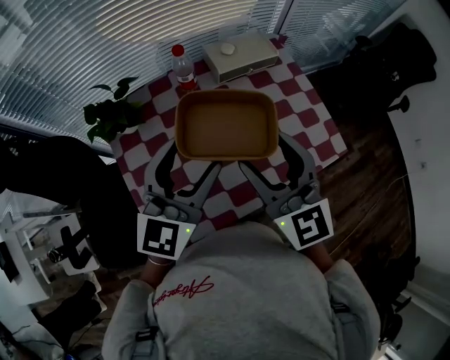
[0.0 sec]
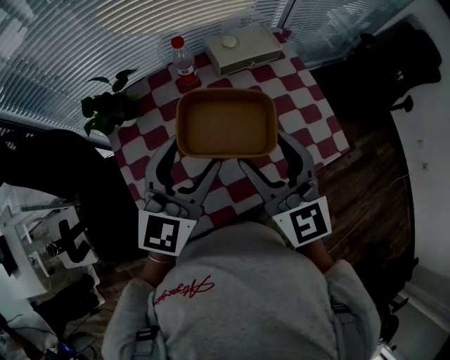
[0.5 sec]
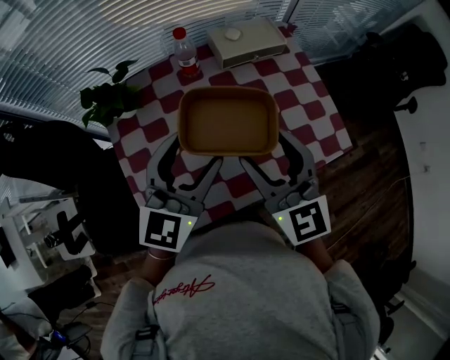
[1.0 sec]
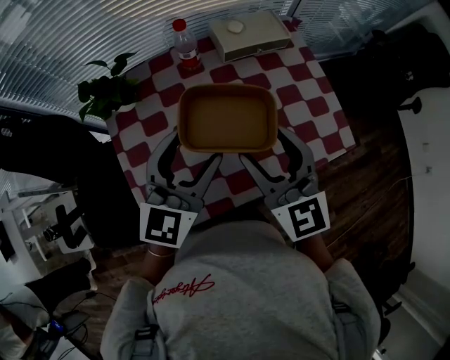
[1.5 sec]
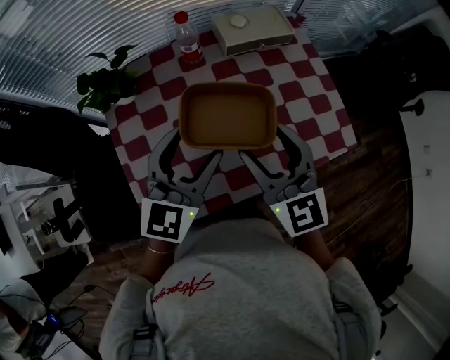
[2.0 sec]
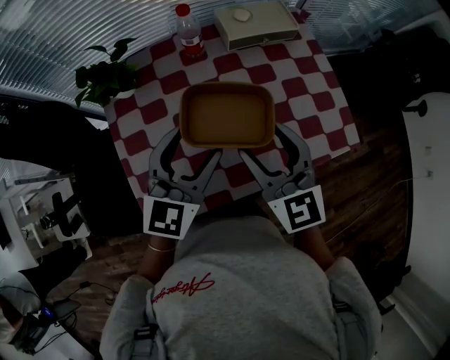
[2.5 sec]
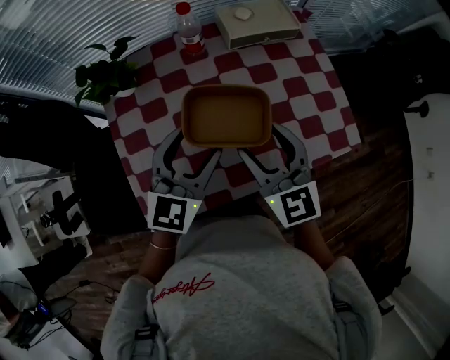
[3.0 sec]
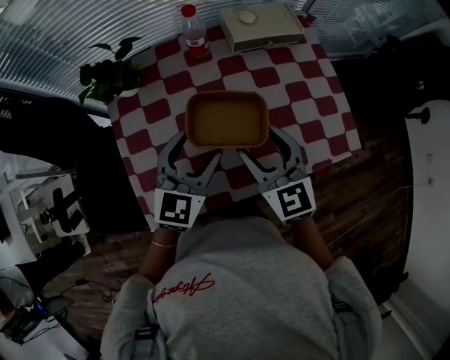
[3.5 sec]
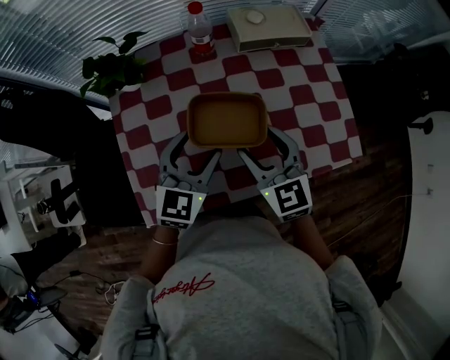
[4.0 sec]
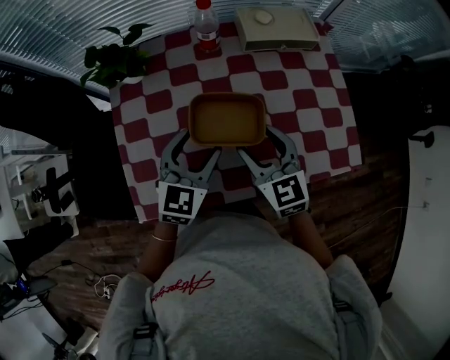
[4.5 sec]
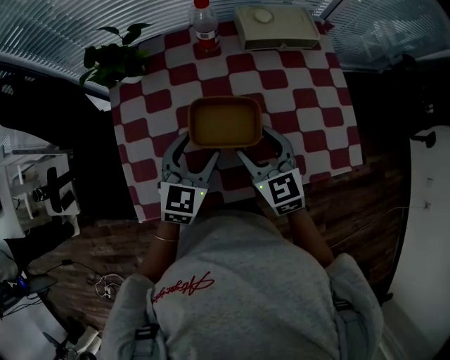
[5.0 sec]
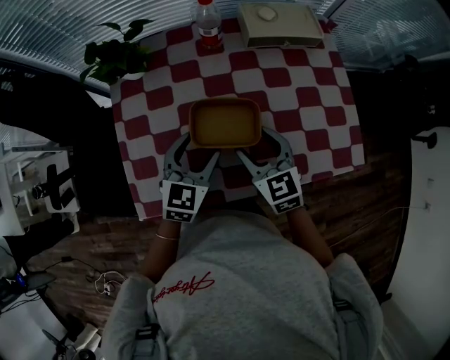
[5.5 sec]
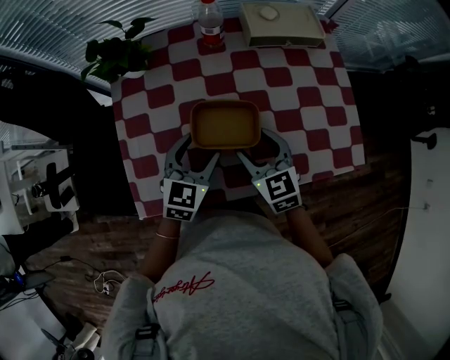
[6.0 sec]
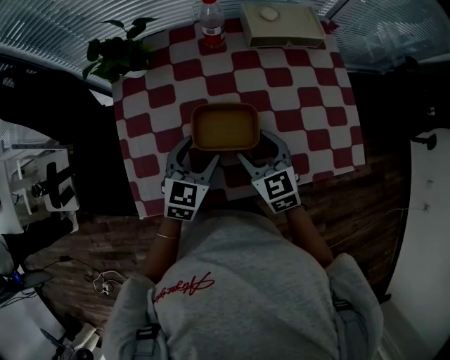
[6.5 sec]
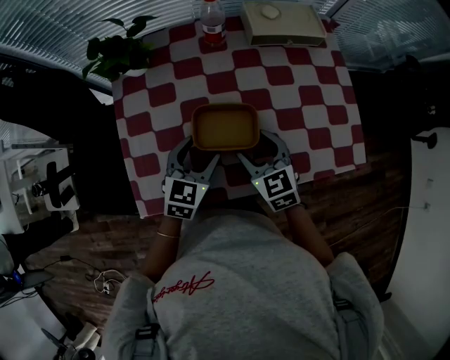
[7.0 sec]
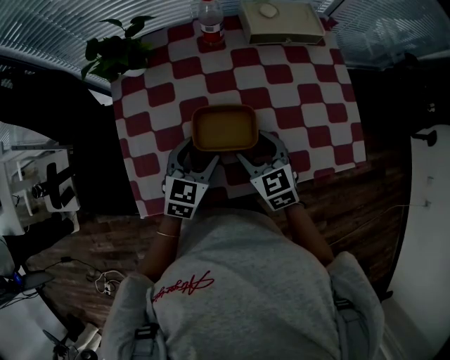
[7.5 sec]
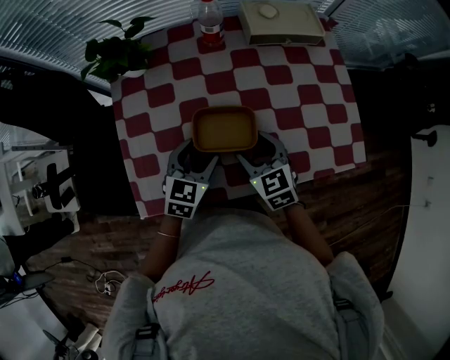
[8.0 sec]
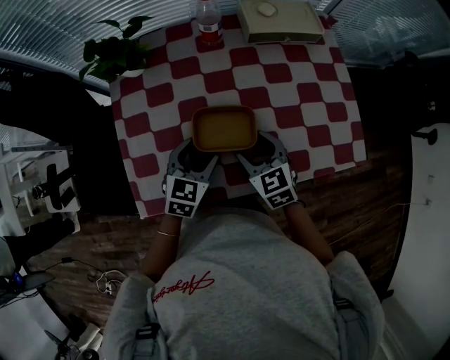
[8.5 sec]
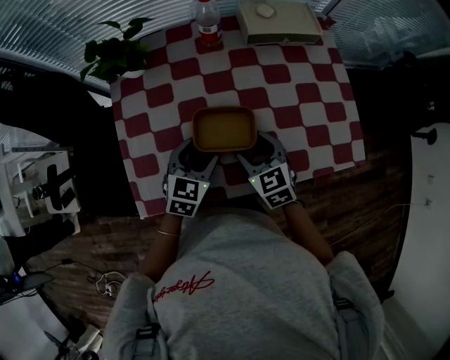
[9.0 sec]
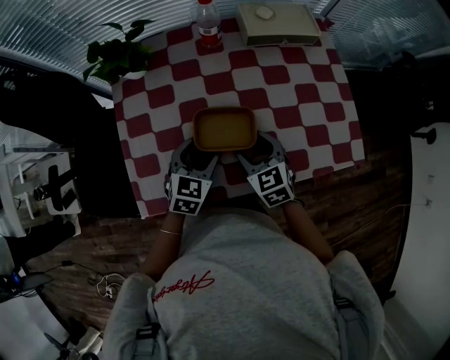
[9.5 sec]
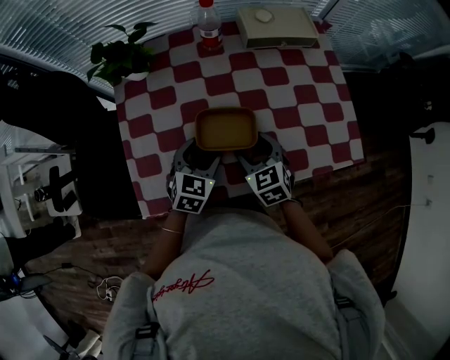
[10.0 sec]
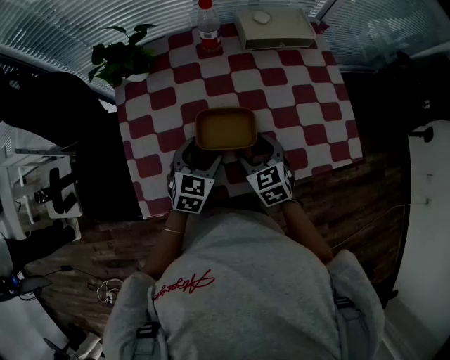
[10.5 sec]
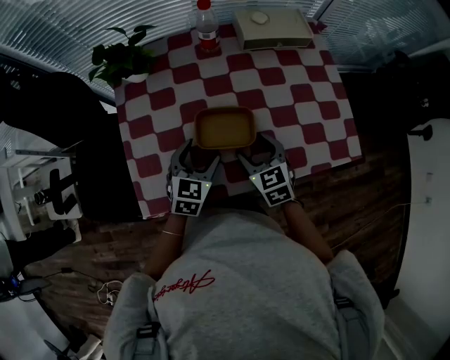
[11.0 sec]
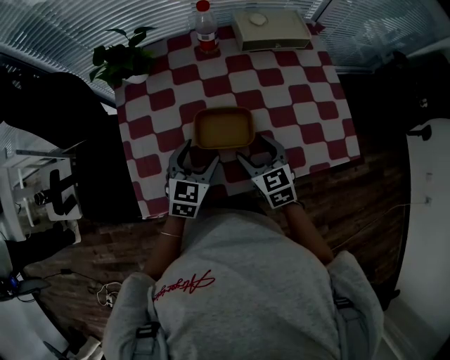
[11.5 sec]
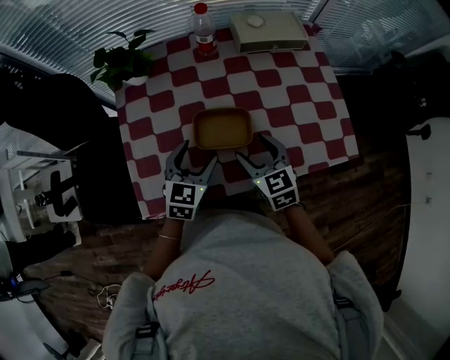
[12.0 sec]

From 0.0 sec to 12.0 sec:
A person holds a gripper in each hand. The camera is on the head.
From 0.0 sec to 2.0 sec: The grippers both shift downward by roughly 5 cm.
From 2.0 sec to 4.0 sec: The two grippers go about 10 cm downward.
From 4.0 sec to 6.0 sec: Both grippers travel together downward, approximately 10 cm.
From 6.0 sec to 12.0 sec: The grippers stay close to where they were, moving slightly.

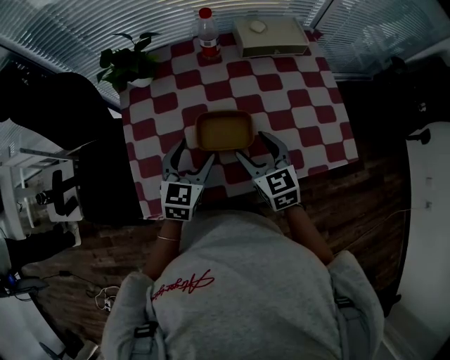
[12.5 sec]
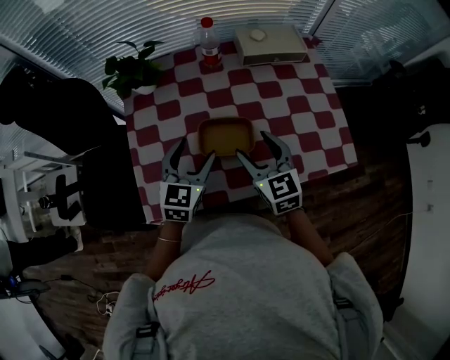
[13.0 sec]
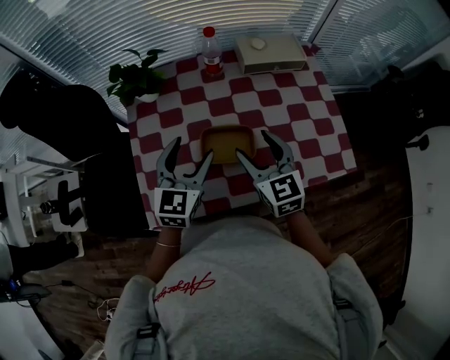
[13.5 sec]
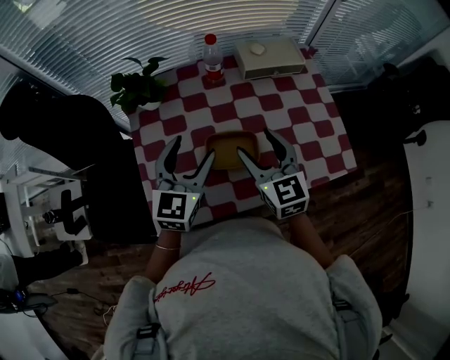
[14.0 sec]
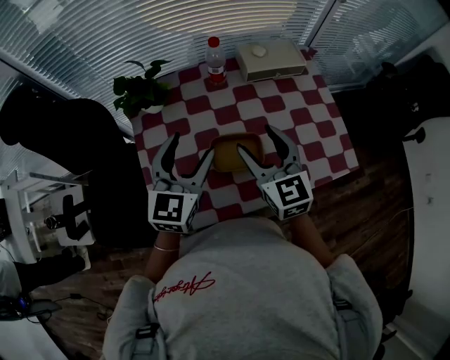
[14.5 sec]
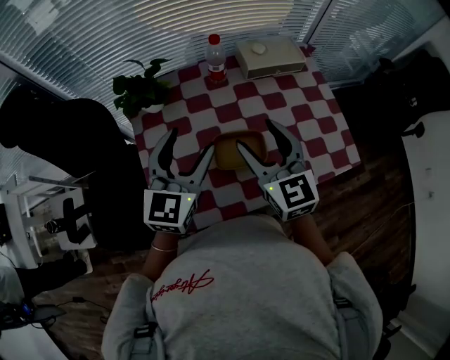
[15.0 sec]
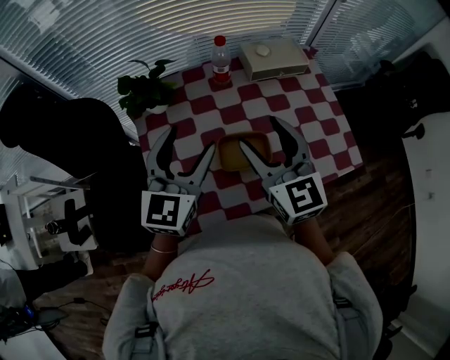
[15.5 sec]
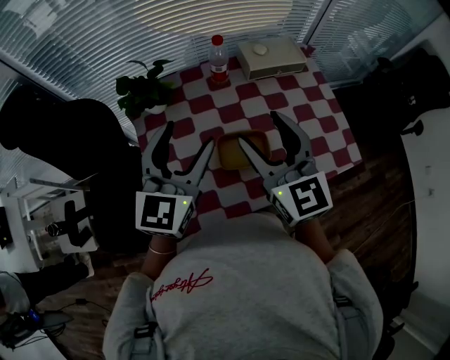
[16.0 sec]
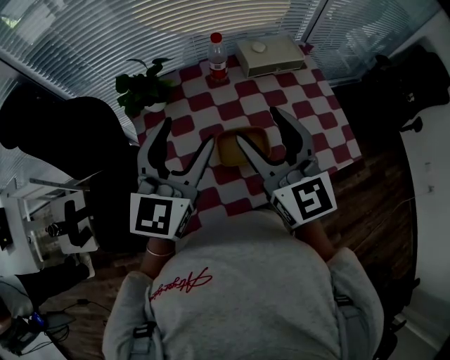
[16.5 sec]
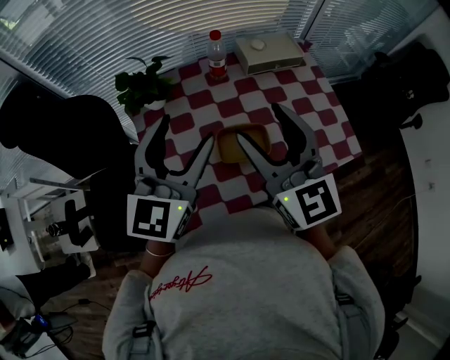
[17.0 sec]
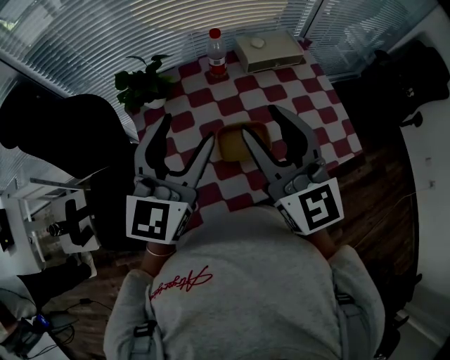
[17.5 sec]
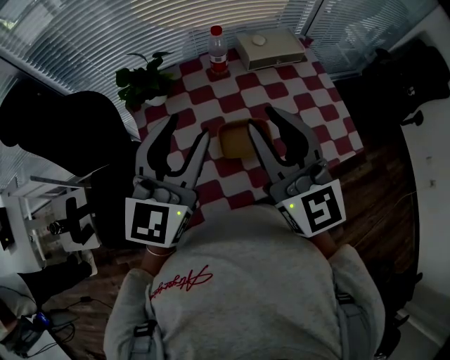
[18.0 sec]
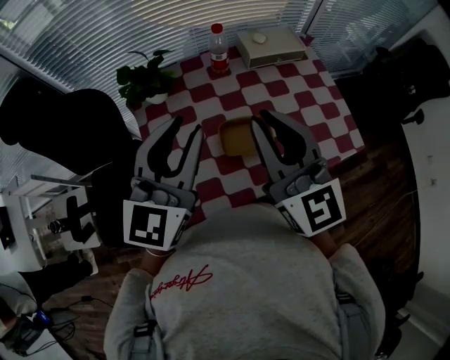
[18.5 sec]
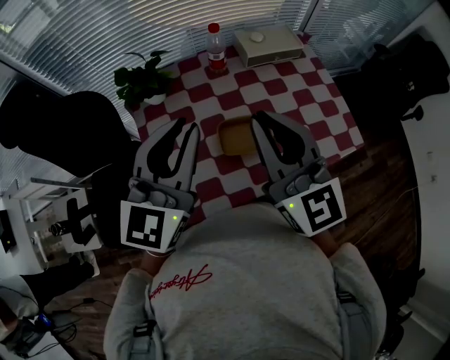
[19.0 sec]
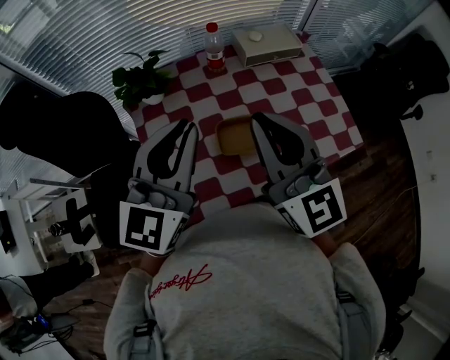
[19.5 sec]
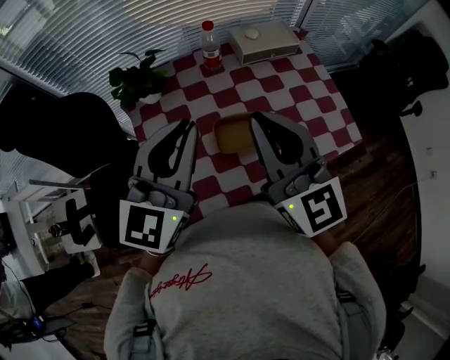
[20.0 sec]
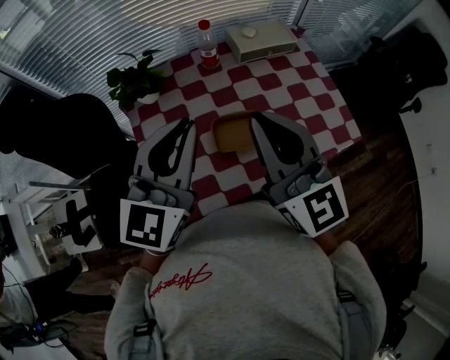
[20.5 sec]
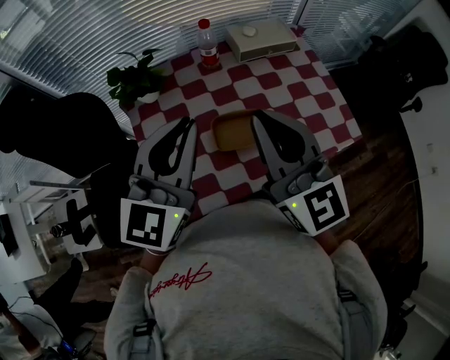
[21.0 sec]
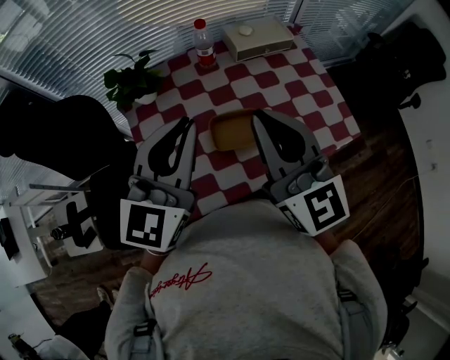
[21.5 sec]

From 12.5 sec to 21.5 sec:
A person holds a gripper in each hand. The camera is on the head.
From 12.5 sec to 14.5 sec: Both grippers travel together upward, some 15 cm.
From 14.5 sec to 17.0 sec: The two grippers go roughly 10 cm upward.
From 17.0 sec to 19.5 sec: The right gripper closes its fingers; the left gripper closes up.
From 19.5 sec to 21.5 sec: The grippers move only a little.

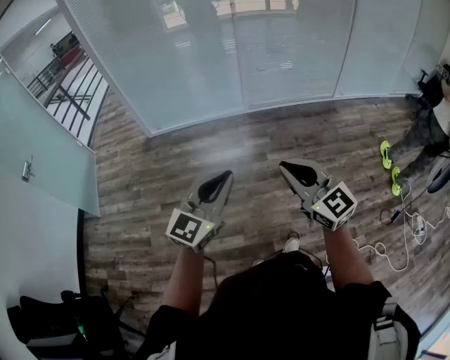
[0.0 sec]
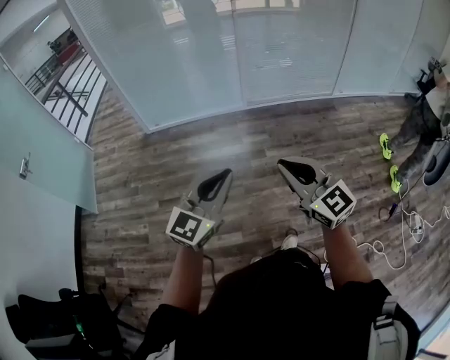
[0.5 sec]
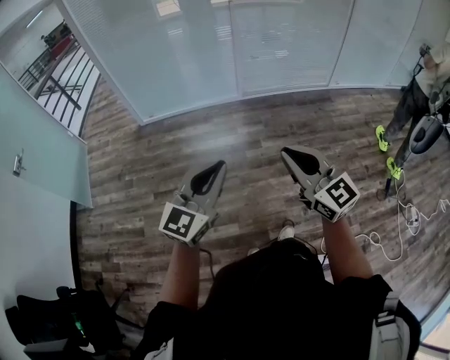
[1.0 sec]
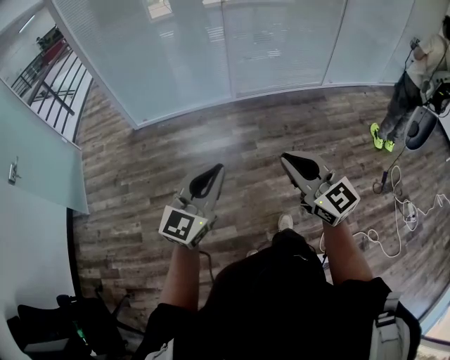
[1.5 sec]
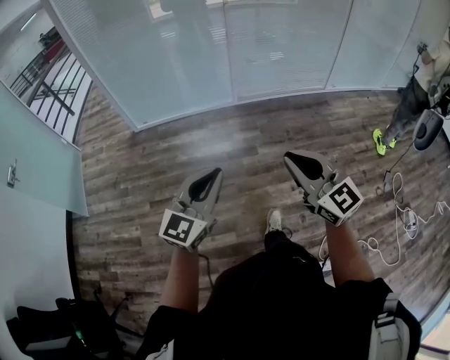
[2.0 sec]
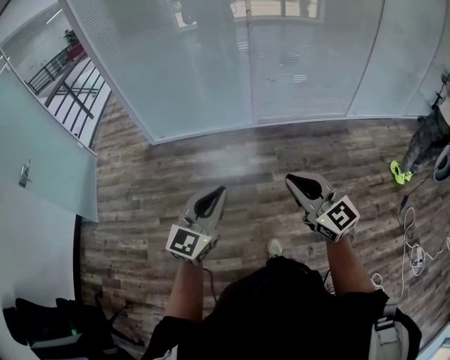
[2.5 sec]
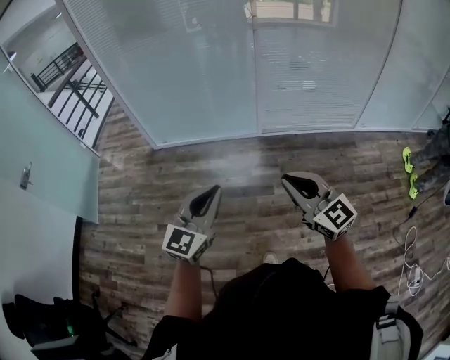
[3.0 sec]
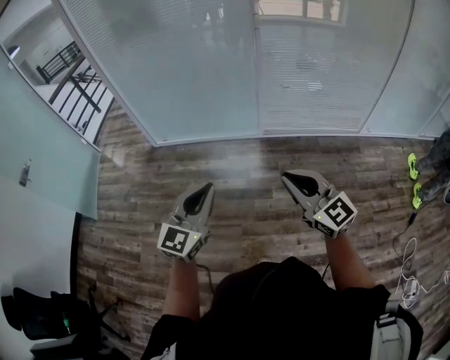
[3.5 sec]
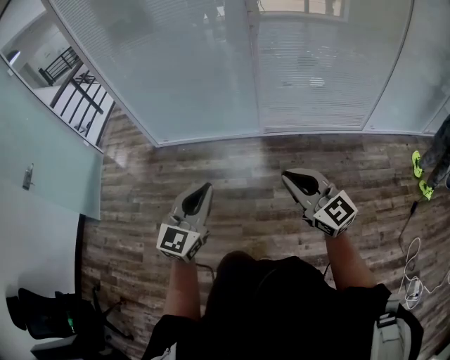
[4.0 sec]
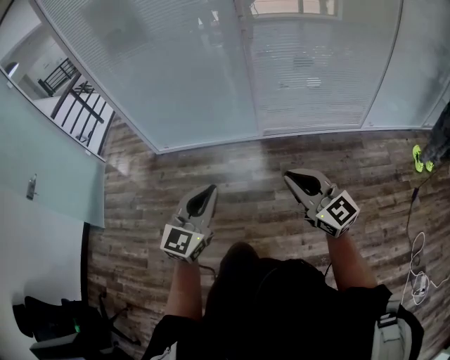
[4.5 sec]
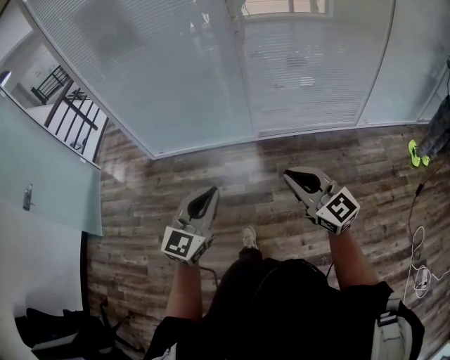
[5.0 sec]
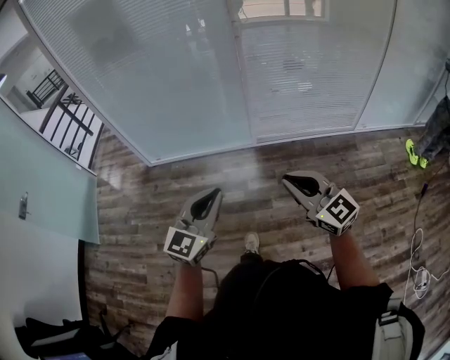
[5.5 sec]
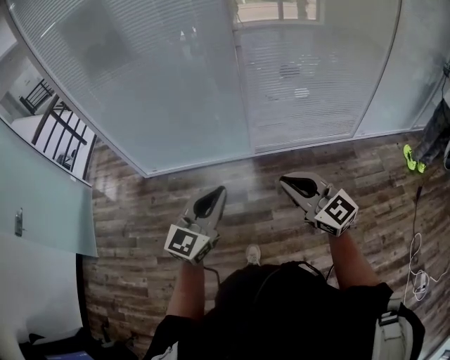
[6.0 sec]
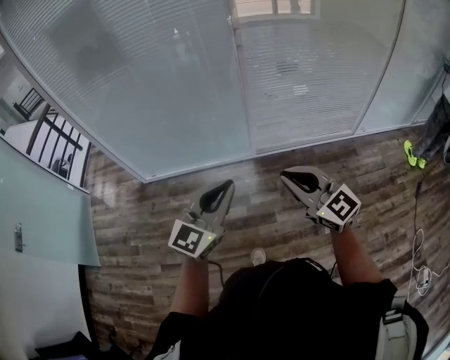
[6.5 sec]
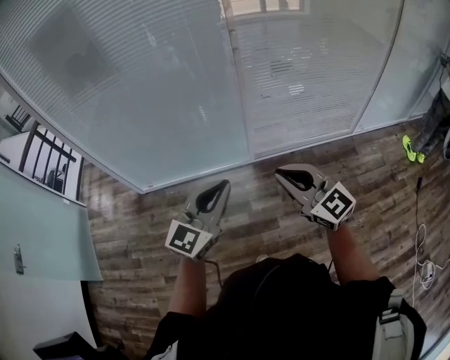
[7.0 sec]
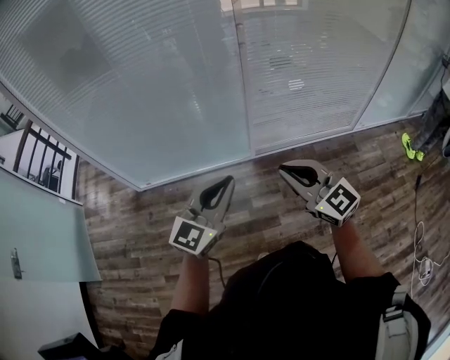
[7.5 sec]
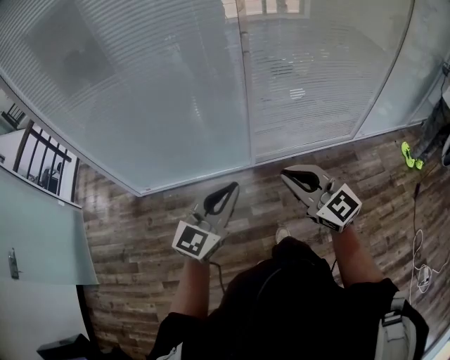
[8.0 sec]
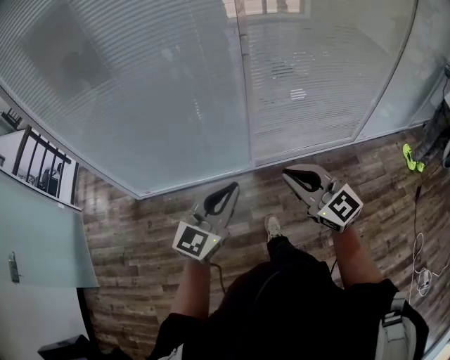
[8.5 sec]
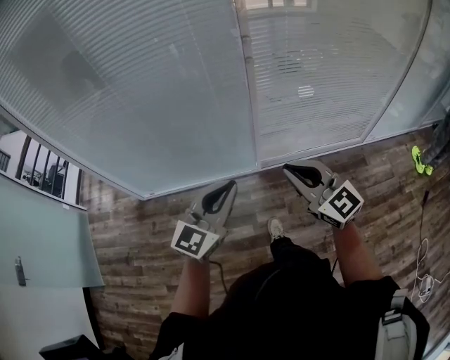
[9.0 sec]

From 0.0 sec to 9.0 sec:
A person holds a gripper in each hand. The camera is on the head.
From 0.0 sec to 2.0 sec: The left gripper moves about 5 cm.
From 2.0 sec to 4.5 sec: The grippers both shift forward and to the right by about 25 cm.
From 4.5 sec to 7.0 sec: Both grippers travel together forward, roughly 25 cm.
From 7.0 sec to 9.0 sec: The grippers both shift forward by some 15 cm.
